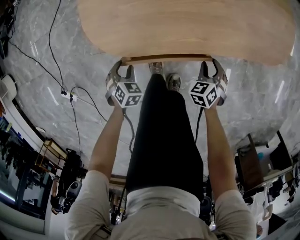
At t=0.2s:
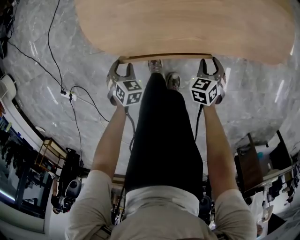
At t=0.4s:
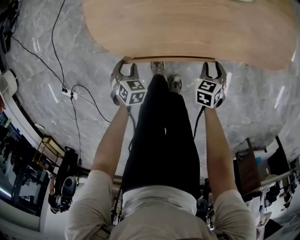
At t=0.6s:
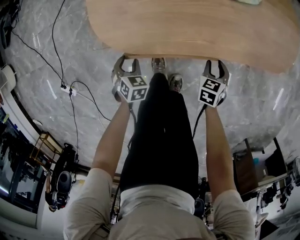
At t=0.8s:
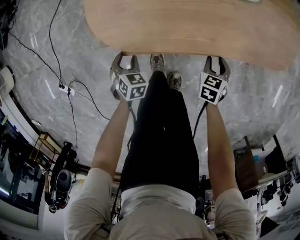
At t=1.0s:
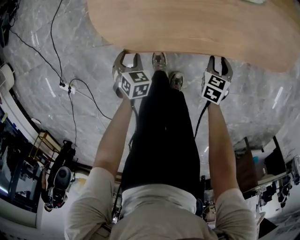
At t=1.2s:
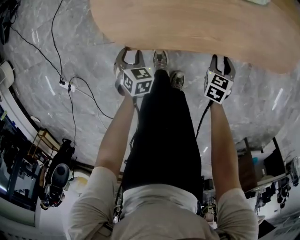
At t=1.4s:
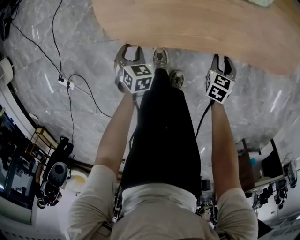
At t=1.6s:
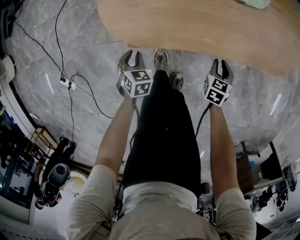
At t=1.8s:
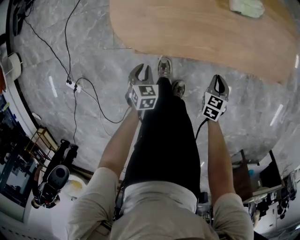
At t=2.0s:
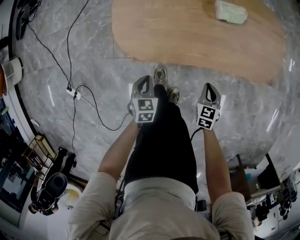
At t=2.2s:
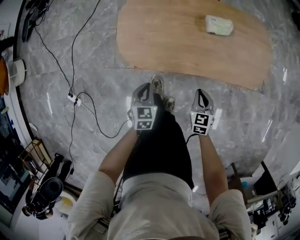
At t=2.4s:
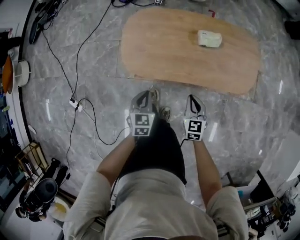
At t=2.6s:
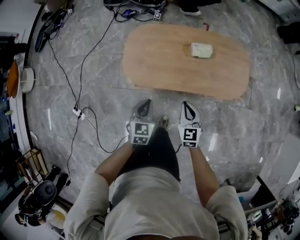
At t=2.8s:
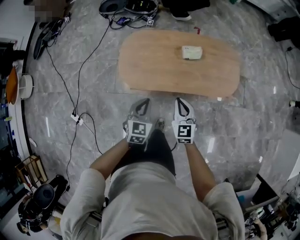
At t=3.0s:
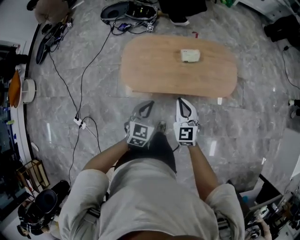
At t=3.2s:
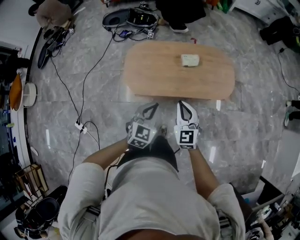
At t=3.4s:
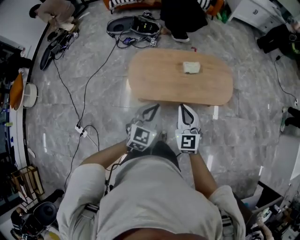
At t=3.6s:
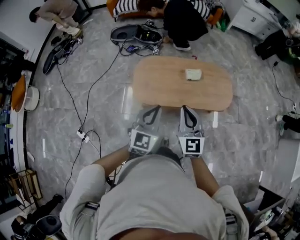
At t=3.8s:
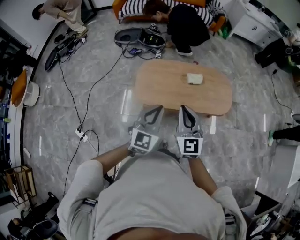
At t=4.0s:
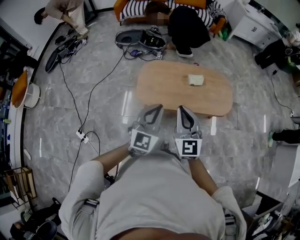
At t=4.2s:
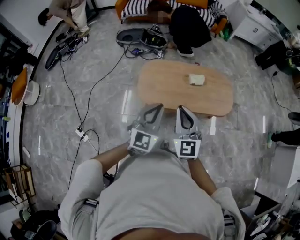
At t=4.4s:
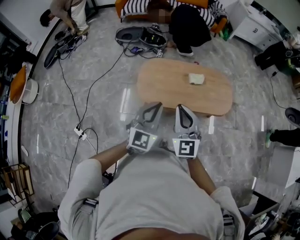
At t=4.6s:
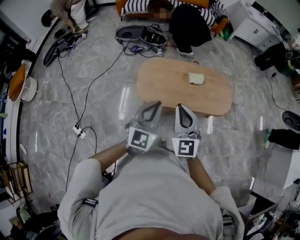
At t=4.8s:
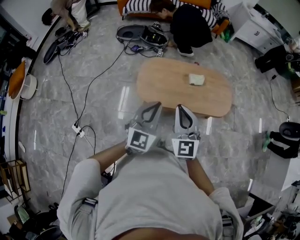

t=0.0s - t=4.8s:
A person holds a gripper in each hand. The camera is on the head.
t=0.0s - t=1.6s: The right gripper rotates some 30 degrees.
t=1.6s - t=3.2s: Both grippers travel together upward, about 50 cm. The right gripper tips its fingers upward by roughly 40 degrees, and closes, while the left gripper tips its fingers upward by about 30 degrees, and closes up.
t=3.2s - t=4.8s: The right gripper moves upward, to the left and backward, about 20 cm; the left gripper travels upward and to the left by about 20 cm, and swivels some 20 degrees.

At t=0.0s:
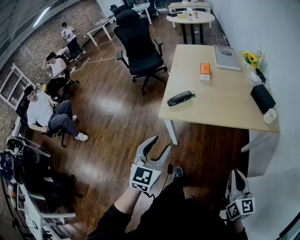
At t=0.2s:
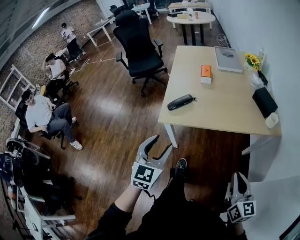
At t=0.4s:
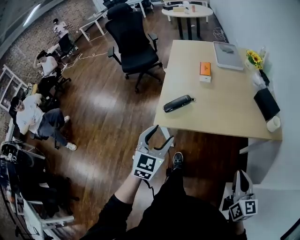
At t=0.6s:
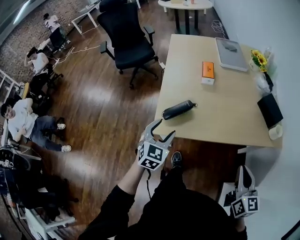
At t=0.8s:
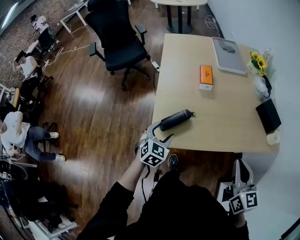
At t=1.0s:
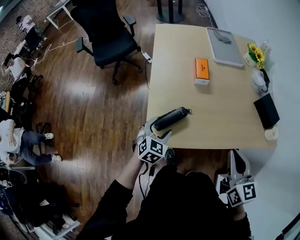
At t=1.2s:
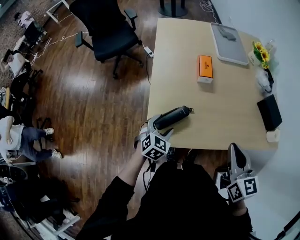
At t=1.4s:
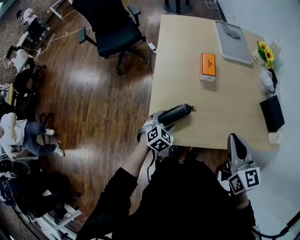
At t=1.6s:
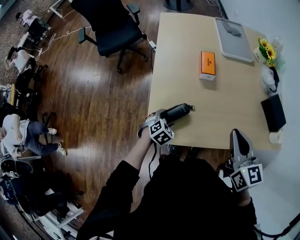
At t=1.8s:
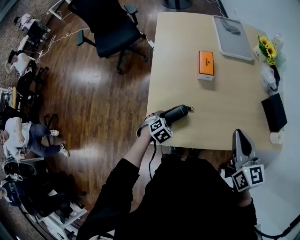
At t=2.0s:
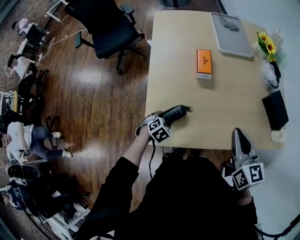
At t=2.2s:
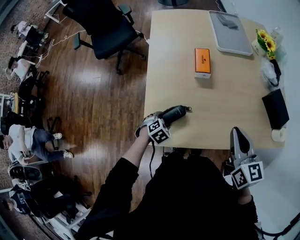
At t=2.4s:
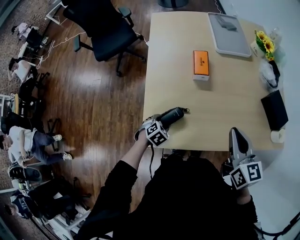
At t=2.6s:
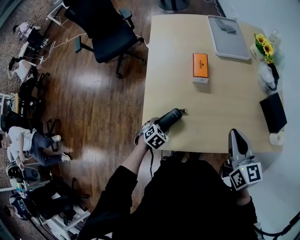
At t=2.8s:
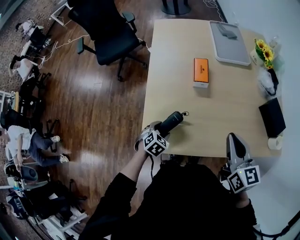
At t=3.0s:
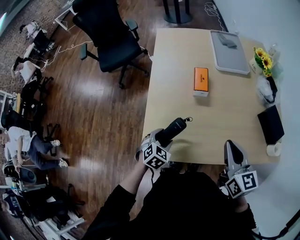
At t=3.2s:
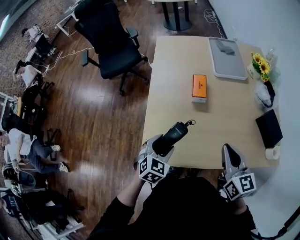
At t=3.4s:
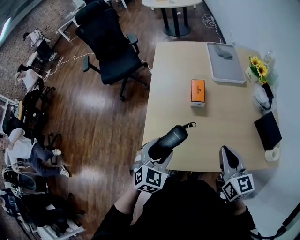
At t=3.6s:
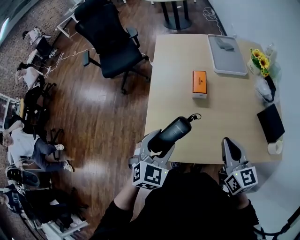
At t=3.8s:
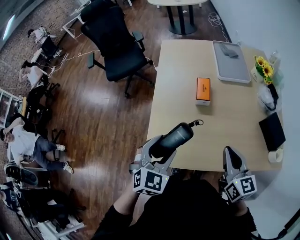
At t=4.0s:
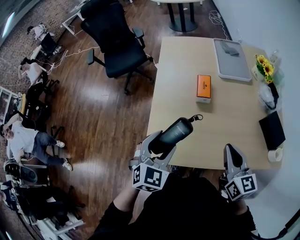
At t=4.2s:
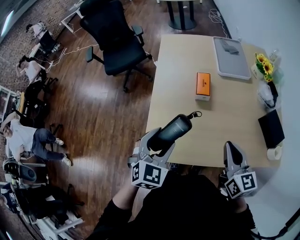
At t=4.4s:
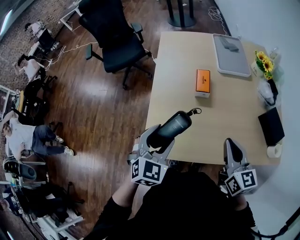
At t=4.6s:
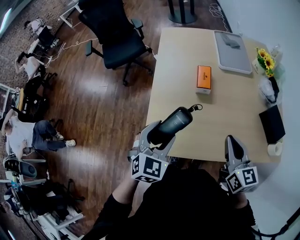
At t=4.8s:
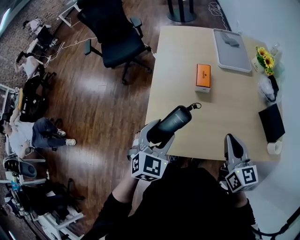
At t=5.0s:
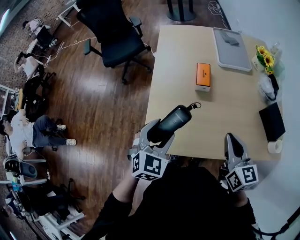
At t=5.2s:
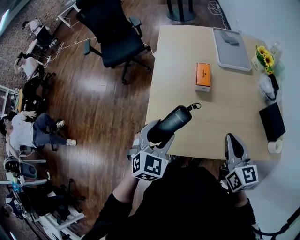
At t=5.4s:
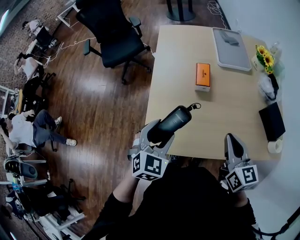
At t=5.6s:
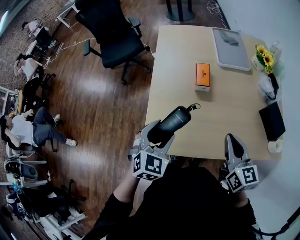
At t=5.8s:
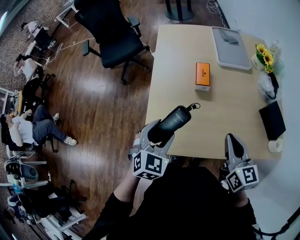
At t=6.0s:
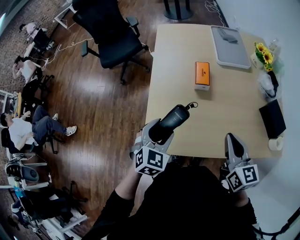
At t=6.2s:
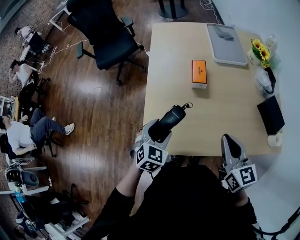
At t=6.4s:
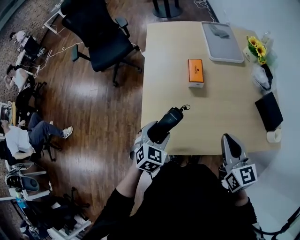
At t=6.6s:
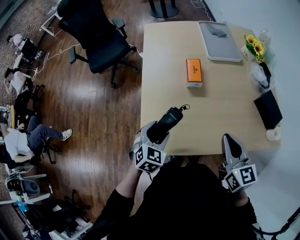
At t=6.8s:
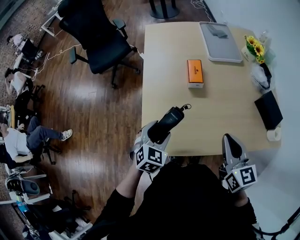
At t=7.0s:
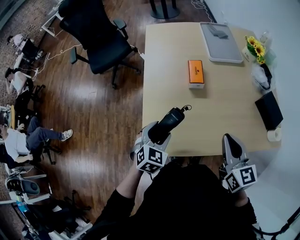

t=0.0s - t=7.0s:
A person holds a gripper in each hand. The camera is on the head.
t=0.0s - t=1.4s: The right gripper is displaced forward by roughly 40 cm; the left gripper shifts roughly 50 cm forward and downward, points its fingers about 40 degrees further downward, and opens its fingers.
t=1.4s - t=2.8s: The right gripper shifts approximately 5 cm forward.
t=2.8s - t=4.2s: The left gripper moves upward, some 25 cm, and tilts its fingers about 30 degrees upward.
t=4.2s - t=5.6s: The grippers stay close to where they were, moving slightly.
t=5.6s - t=7.0s: The left gripper is displaced downward by some 10 cm.

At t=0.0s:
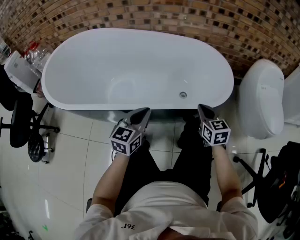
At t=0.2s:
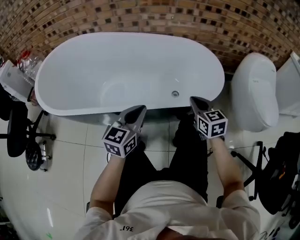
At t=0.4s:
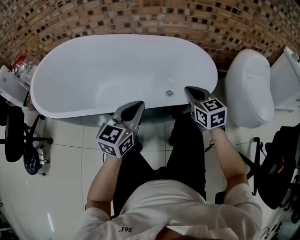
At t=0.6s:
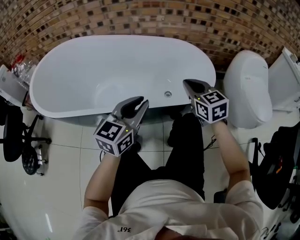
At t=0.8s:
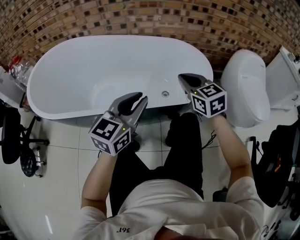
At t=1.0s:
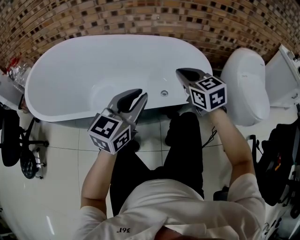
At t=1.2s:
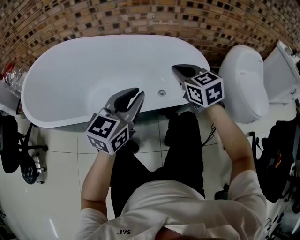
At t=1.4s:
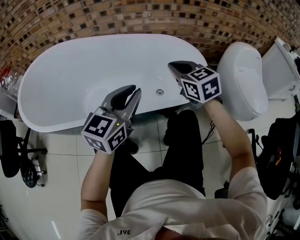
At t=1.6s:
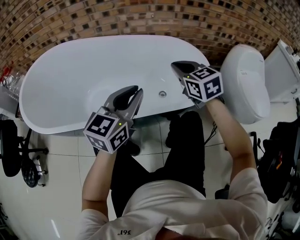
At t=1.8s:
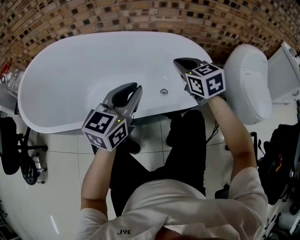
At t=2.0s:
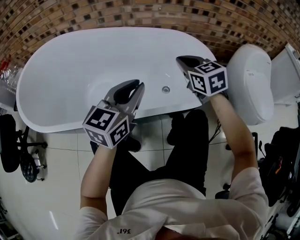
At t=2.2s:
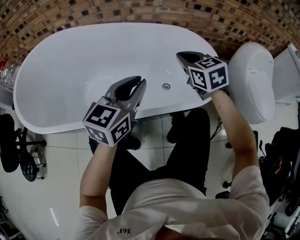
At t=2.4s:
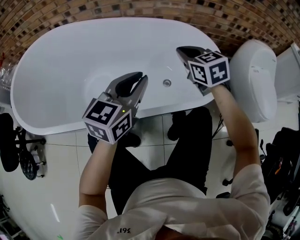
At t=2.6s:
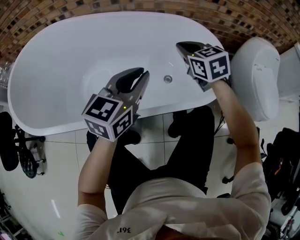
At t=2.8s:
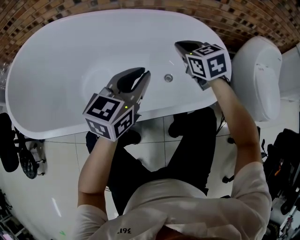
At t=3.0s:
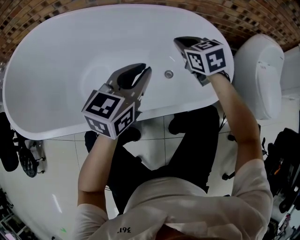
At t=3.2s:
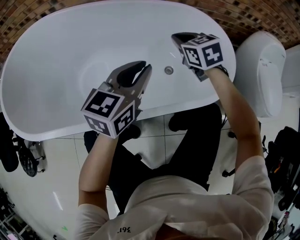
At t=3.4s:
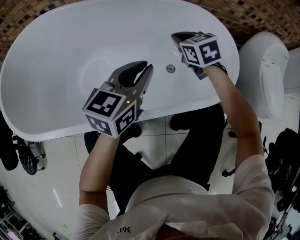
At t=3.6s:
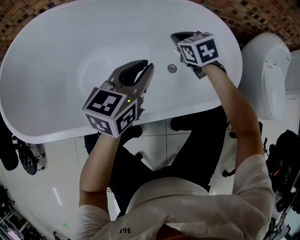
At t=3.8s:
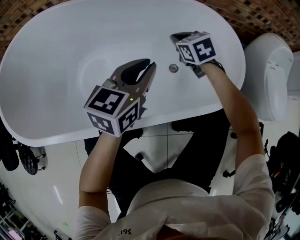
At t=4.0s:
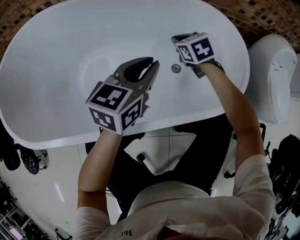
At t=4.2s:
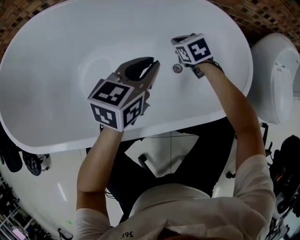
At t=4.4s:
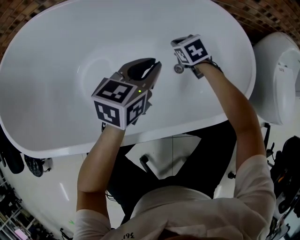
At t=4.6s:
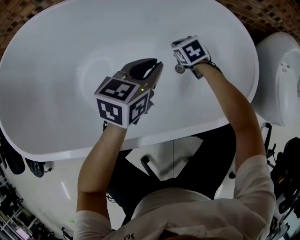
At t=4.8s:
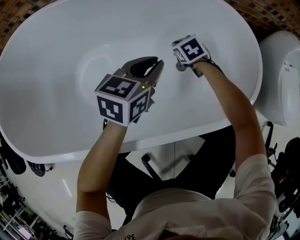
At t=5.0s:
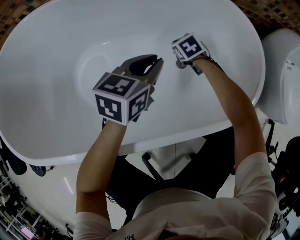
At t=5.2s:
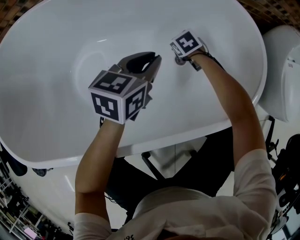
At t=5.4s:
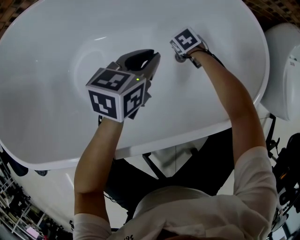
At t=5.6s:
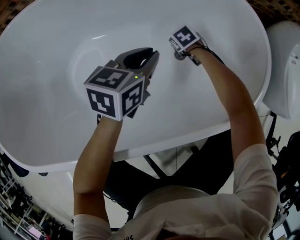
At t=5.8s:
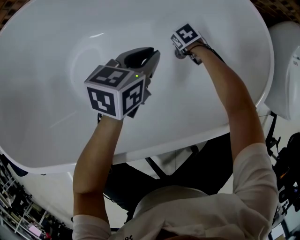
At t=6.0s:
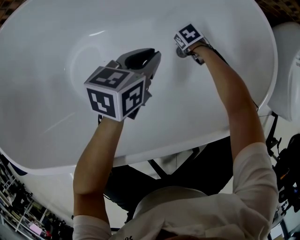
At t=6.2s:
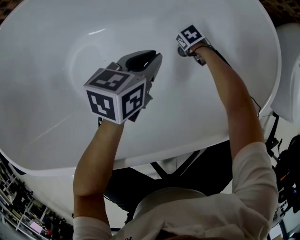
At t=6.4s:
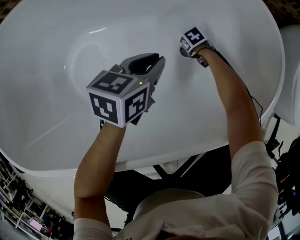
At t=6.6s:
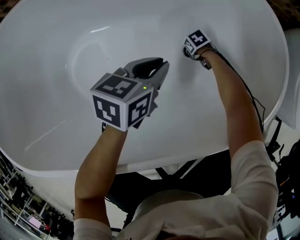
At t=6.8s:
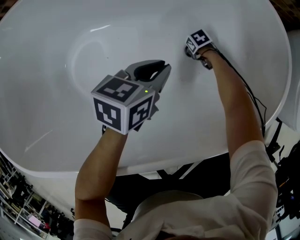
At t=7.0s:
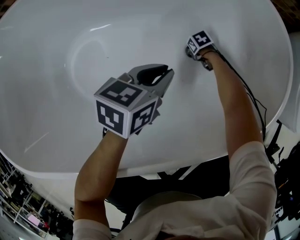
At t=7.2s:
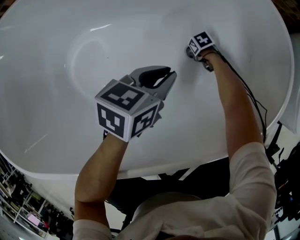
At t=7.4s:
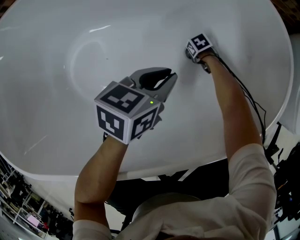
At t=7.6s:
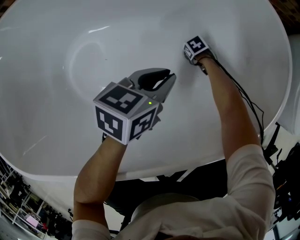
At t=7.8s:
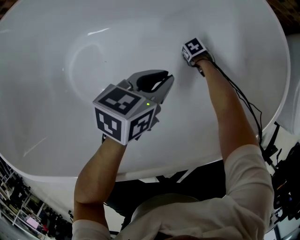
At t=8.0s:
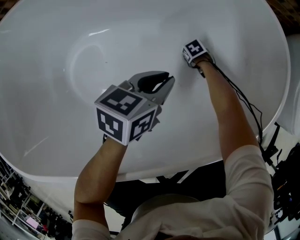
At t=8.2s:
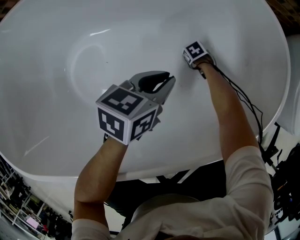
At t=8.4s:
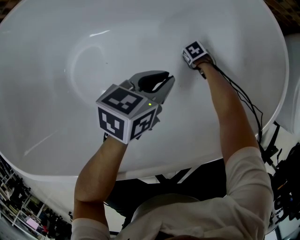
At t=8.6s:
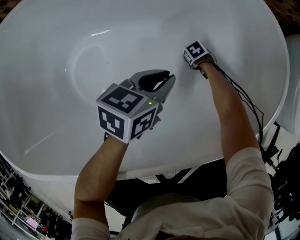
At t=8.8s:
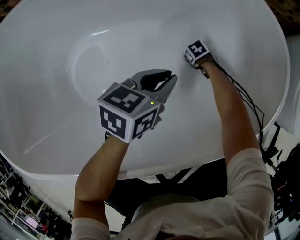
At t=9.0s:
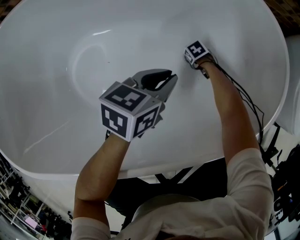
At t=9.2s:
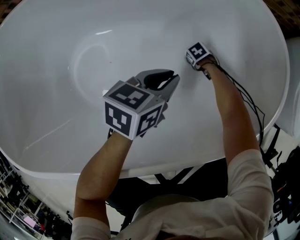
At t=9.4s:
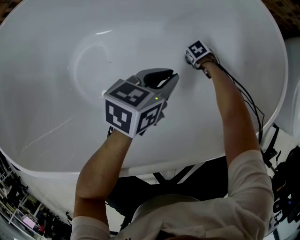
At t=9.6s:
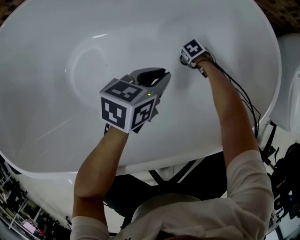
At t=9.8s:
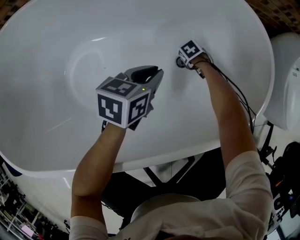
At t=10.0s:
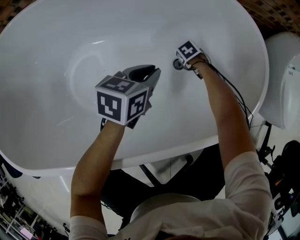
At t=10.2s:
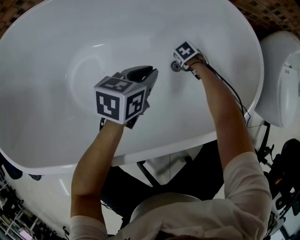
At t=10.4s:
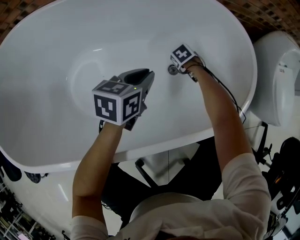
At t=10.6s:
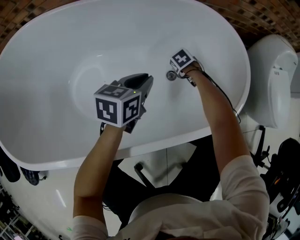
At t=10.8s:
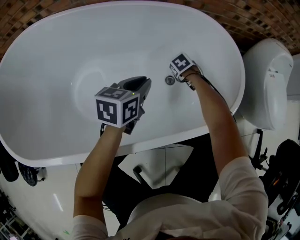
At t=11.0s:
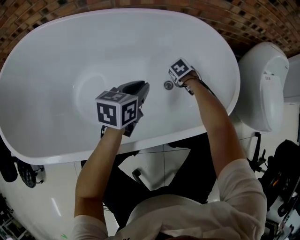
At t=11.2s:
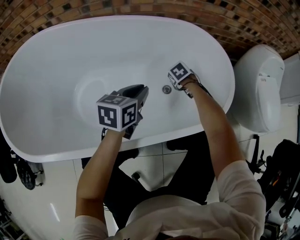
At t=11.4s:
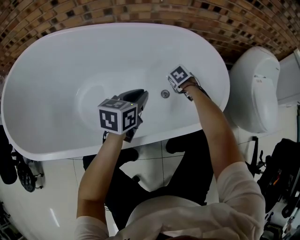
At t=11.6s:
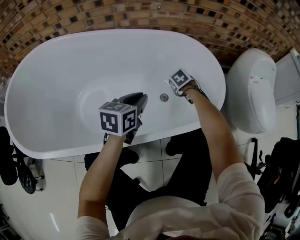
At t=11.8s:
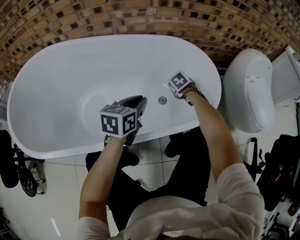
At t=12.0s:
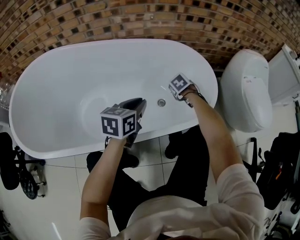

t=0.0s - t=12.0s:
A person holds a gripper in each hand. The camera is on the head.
t=0.0s - t=1.6s: Both grippers move upward and forward, roughly 15 cm.
t=1.6s - t=3.0s: The grippers both shift forward and downward by some 15 cm.
t=3.0s - t=4.4s: The left gripper goes roughly 15 cm downward and forward. Meanwhile the right gripper goes roughly 20 cm downward and forward.
t=4.4s - t=6.0s: The right gripper is displaced downward by about 20 cm, and turns by roughly 20 degrees. The left gripper travels downward by roughly 10 cm.
t=6.0s - t=7.6s: The left gripper shifts by some 5 cm. Meanwhile the right gripper shifts about 10 cm downward.
t=7.6s - t=9.0s: Both grippers stay about where they are.
t=9.0s - t=10.4s: The right gripper shifts some 15 cm upward.
t=10.4s - t=12.0s: The right gripper goes roughly 20 cm upward. The left gripper moves upward, approximately 10 cm.
